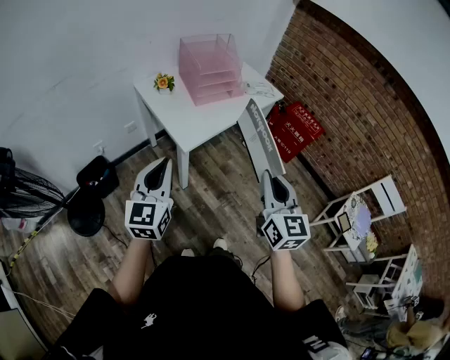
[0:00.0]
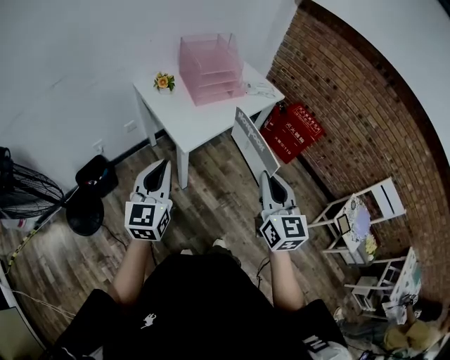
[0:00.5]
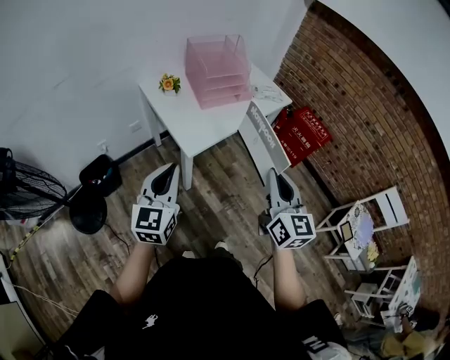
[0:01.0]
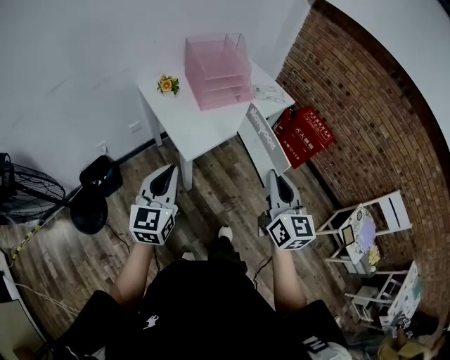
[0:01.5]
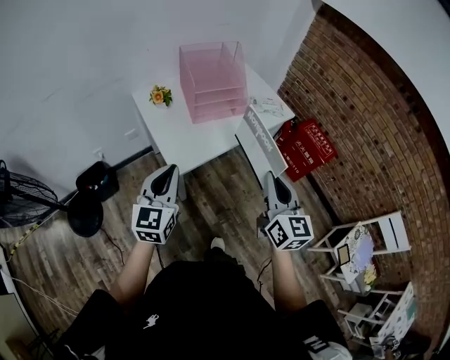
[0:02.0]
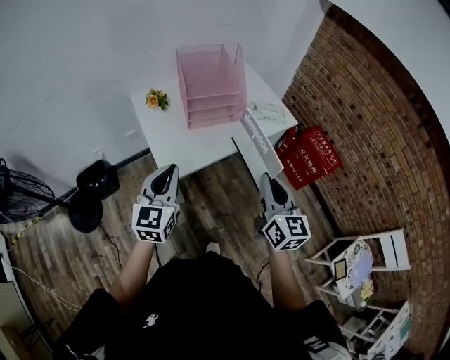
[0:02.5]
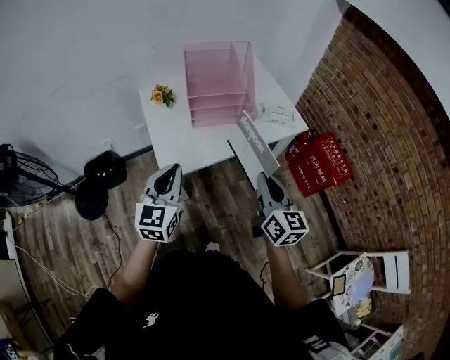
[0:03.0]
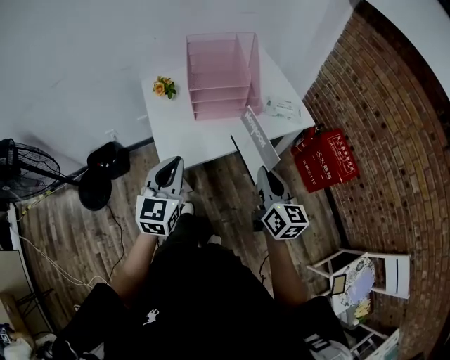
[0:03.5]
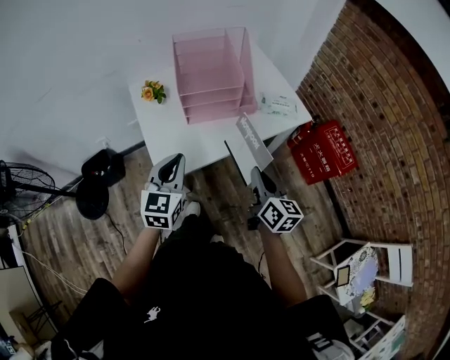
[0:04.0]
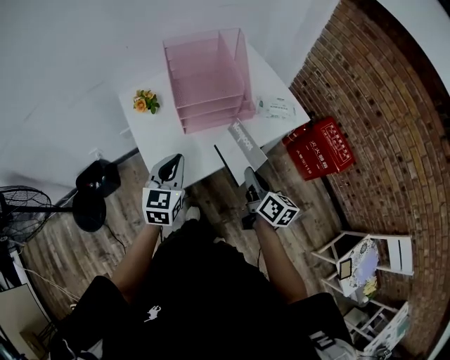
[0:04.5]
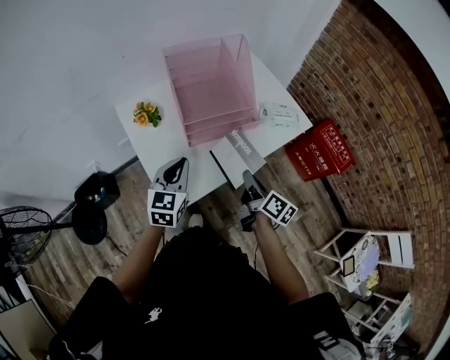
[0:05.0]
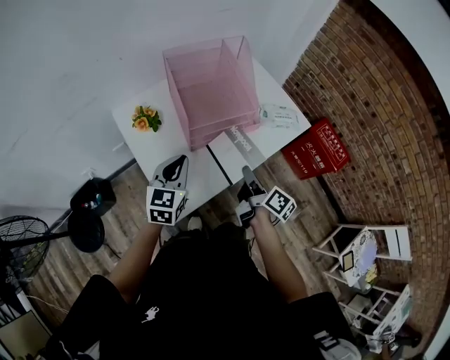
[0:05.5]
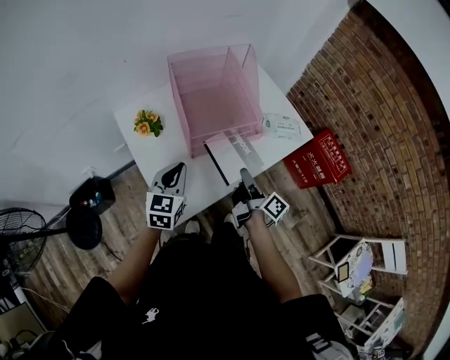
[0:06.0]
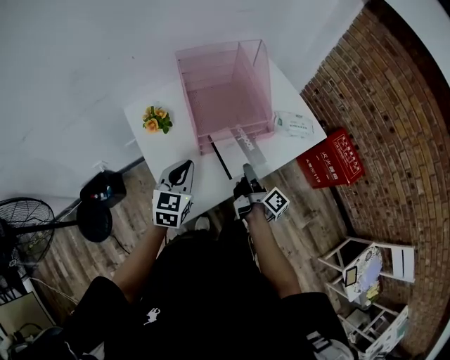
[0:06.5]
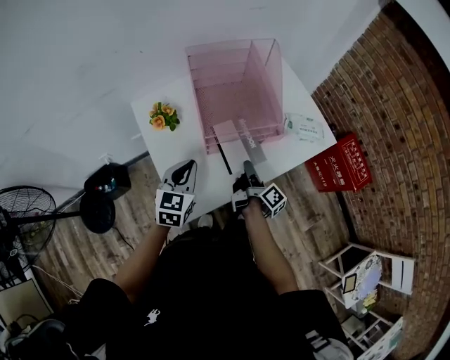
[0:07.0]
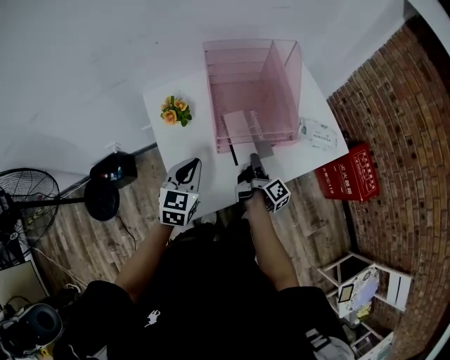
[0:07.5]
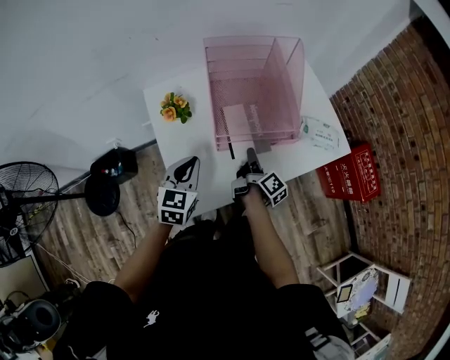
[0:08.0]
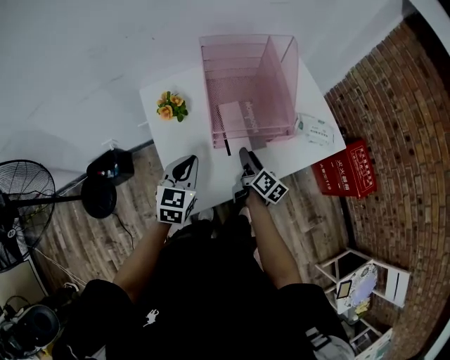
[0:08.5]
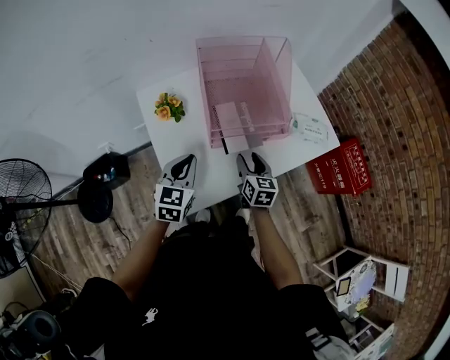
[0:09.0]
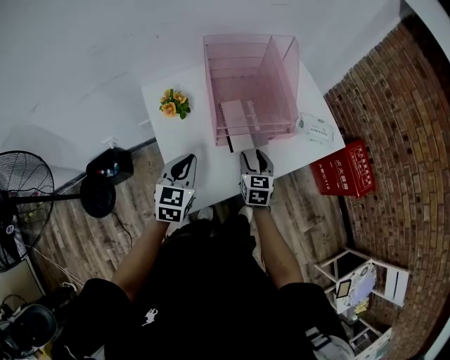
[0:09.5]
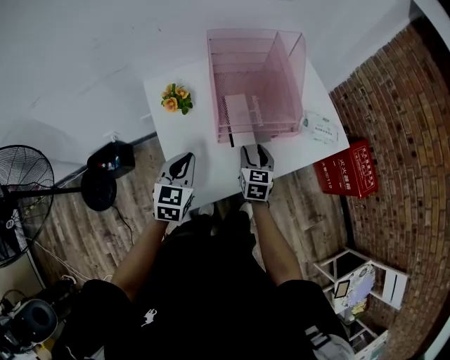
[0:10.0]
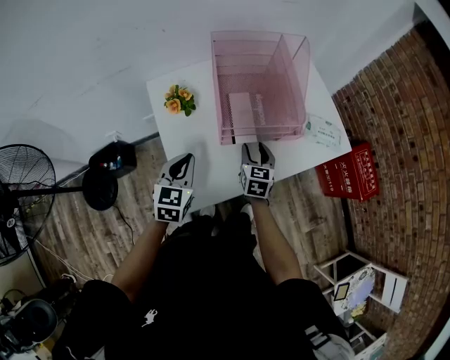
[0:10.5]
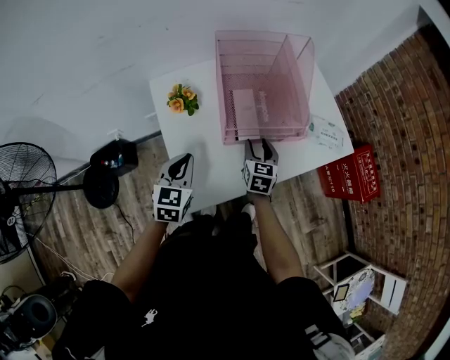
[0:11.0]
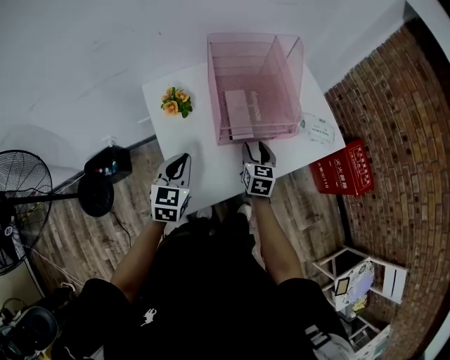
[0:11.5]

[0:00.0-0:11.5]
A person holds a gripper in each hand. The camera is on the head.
0.0 to 2.0 s: The left gripper heads forward and to the right, covering about 15 cm. The right gripper goes roughly 15 cm forward.
2.0 to 4.0 s: The right gripper heads forward, downward and to the right, covering about 20 cm, and rotates roughly 30 degrees. Meanwhile the left gripper goes about 15 cm forward, to the right and downward.
4.0 to 6.0 s: The right gripper shifts approximately 20 cm forward, to the left and downward, and rotates around the line of its fingers by roughly 40 degrees, clockwise from behind. The left gripper travels forward, downward and to the left by some 20 cm.
6.0 to 7.5 s: The right gripper is displaced forward and downward by some 10 cm.
7.5 to 9.5 s: The right gripper twists about 80 degrees counterclockwise, seen from behind, and opens.
9.5 to 11.5 s: The grippers make only small movements.

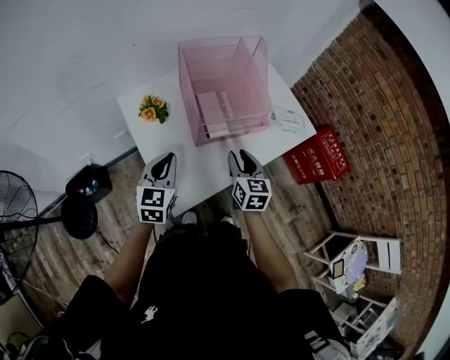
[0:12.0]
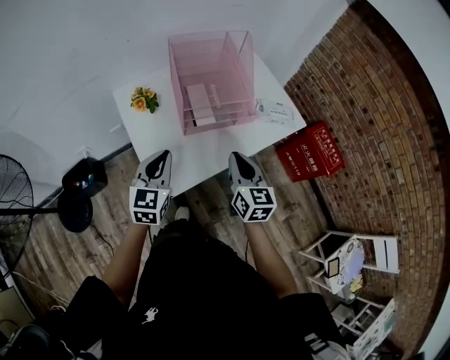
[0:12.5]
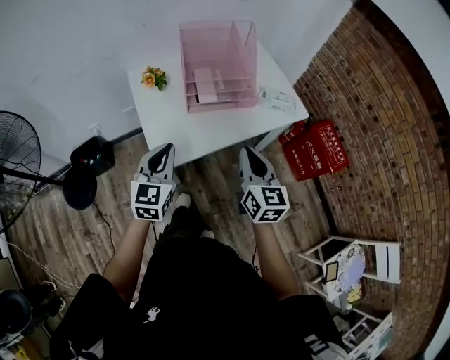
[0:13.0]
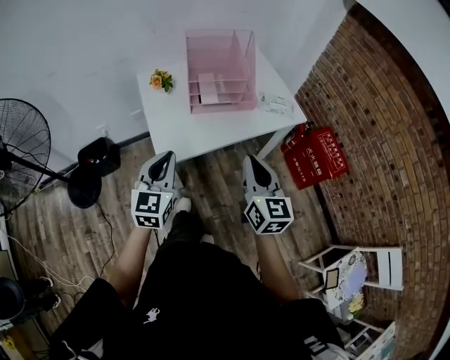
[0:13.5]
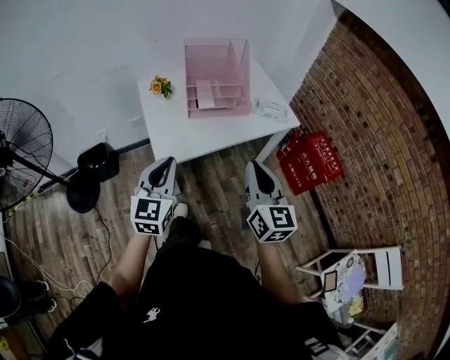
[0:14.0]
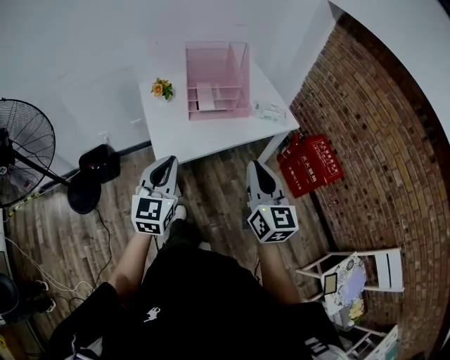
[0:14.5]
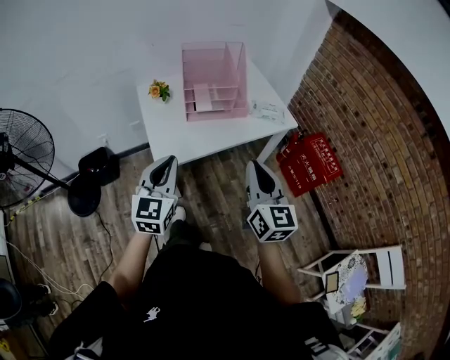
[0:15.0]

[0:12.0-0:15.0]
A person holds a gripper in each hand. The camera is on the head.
12.0 to 13.5 s: The left gripper goes approximately 25 cm backward, while the right gripper goes approximately 30 cm backward and upward, and closes its fingers.
13.5 to 15.0 s: The right gripper ends up roughly 5 cm from where it was; the left gripper shifts by approximately 5 cm.

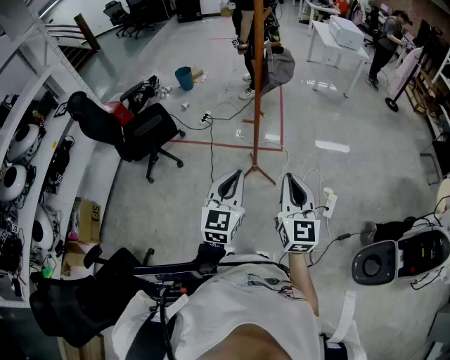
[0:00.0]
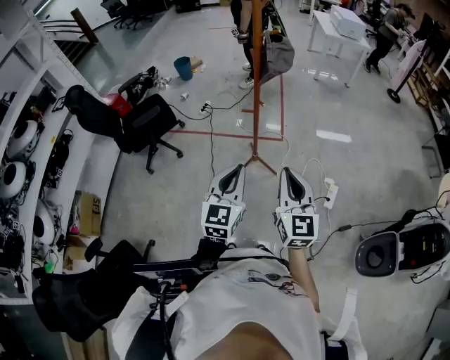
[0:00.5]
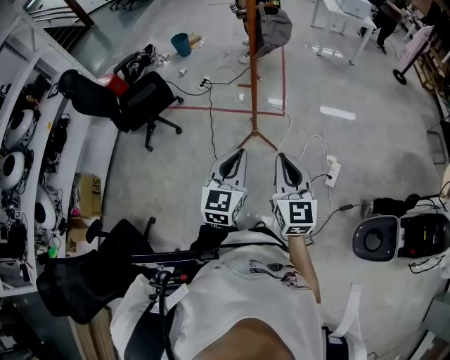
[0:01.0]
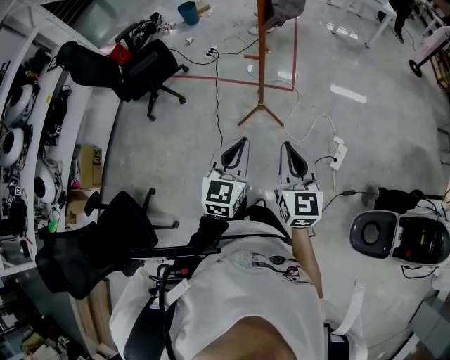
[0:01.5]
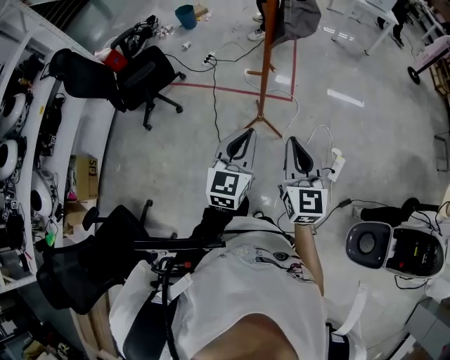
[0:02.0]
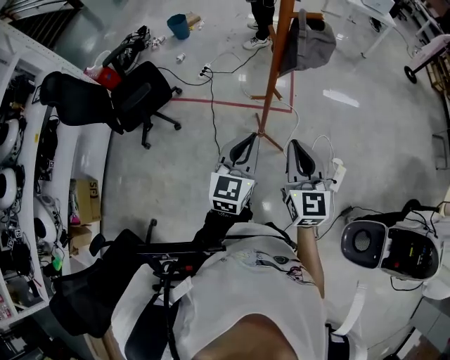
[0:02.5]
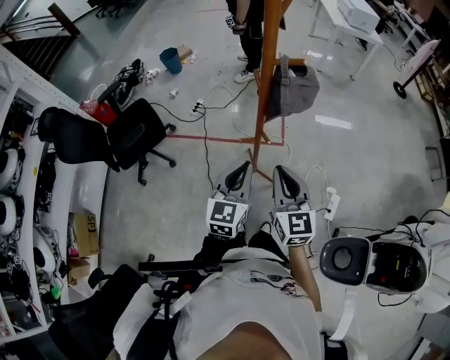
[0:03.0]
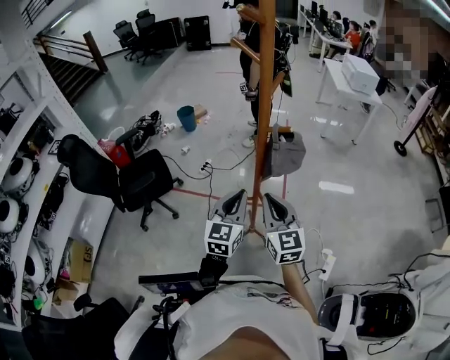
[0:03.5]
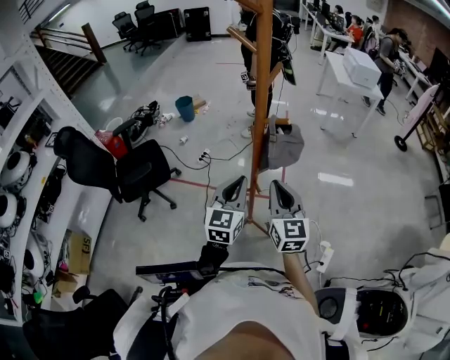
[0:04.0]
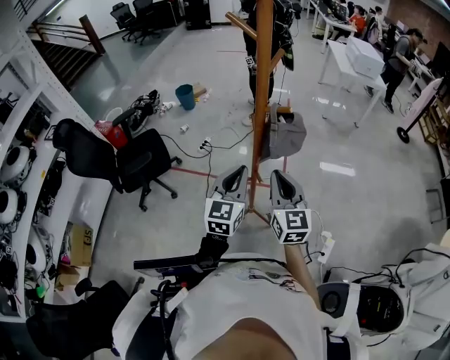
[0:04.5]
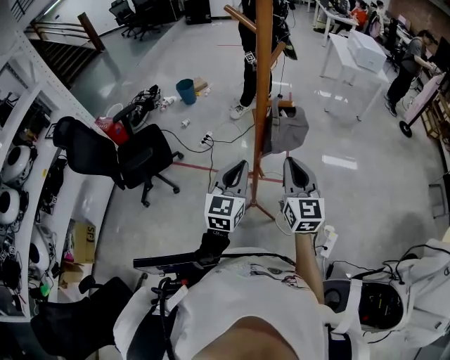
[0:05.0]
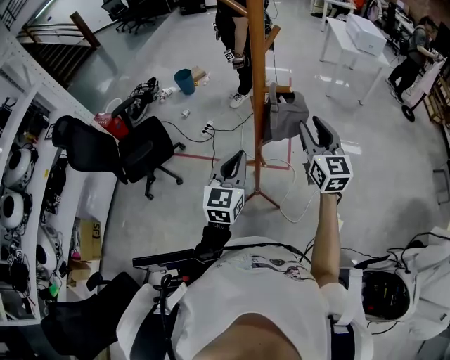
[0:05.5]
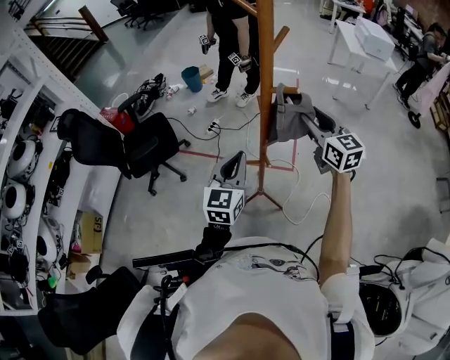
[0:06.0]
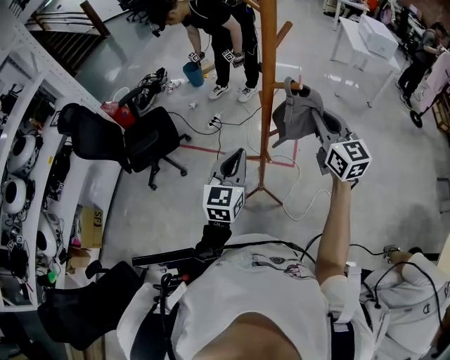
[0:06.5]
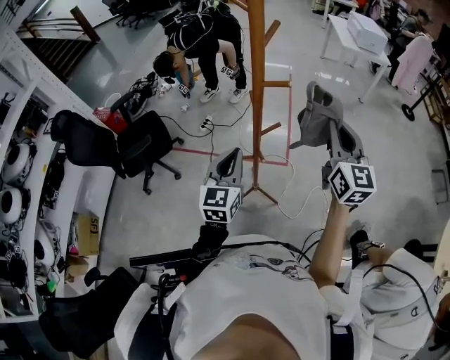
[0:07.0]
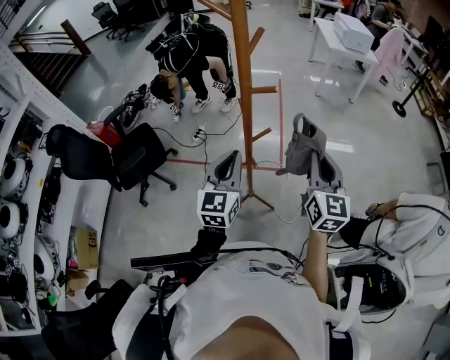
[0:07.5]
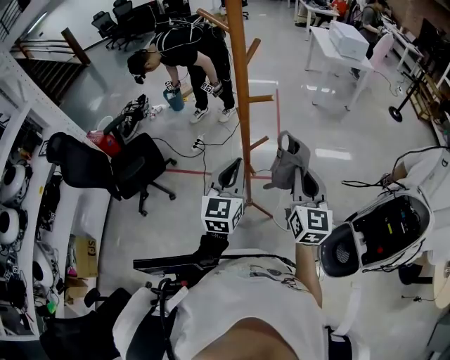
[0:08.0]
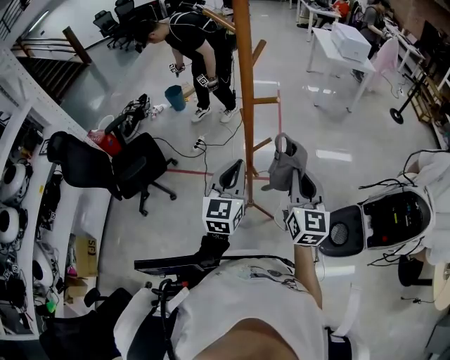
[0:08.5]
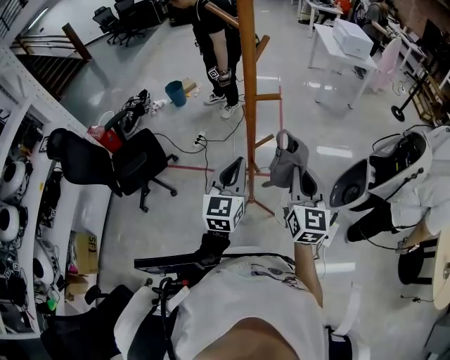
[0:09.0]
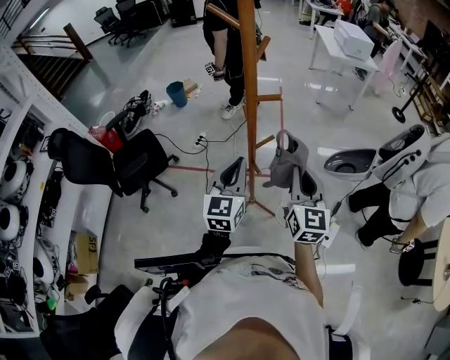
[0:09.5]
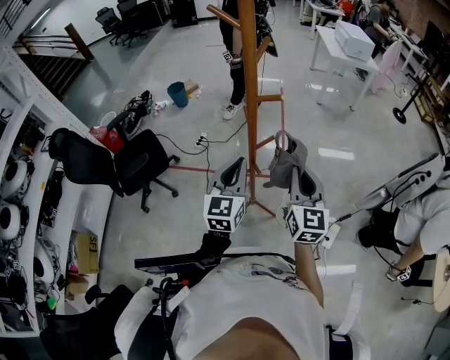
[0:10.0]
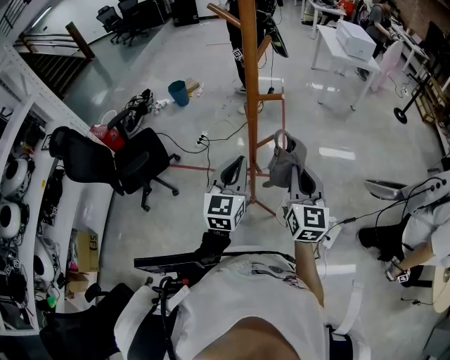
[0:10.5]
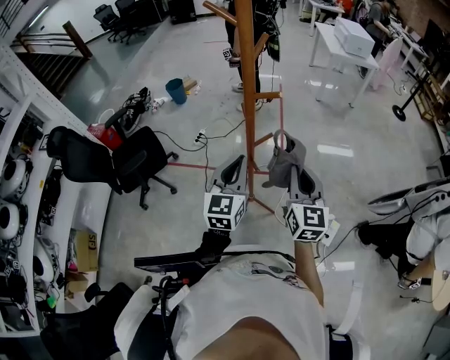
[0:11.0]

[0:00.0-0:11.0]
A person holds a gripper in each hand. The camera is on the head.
0.0 to 2.0 s: The grippers both shift forward by approximately 10 cm.
2.0 to 3.5 s: Both grippers move forward, some 20 cm.
3.5 to 5.5 s: The right gripper is displaced to the right and forward by approximately 15 cm, and opens up.
5.5 to 7.5 s: The right gripper moves backward, roughly 10 cm, and closes its fingers.
7.5 to 9.0 s: The right gripper shifts by about 5 cm.
9.0 to 11.0 s: The grippers stay close to where they were, moving slightly.

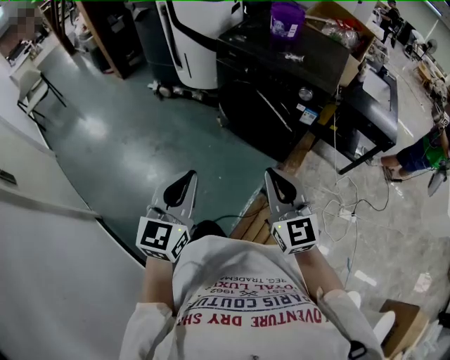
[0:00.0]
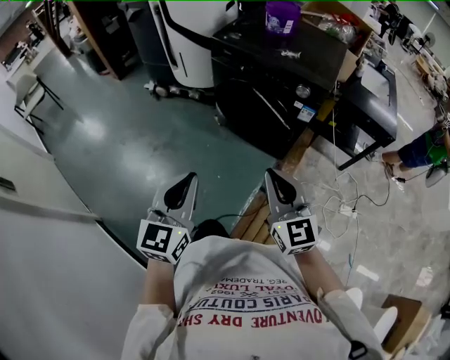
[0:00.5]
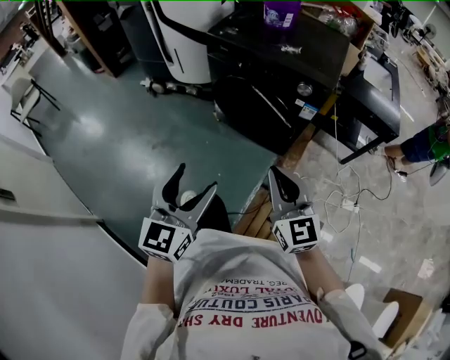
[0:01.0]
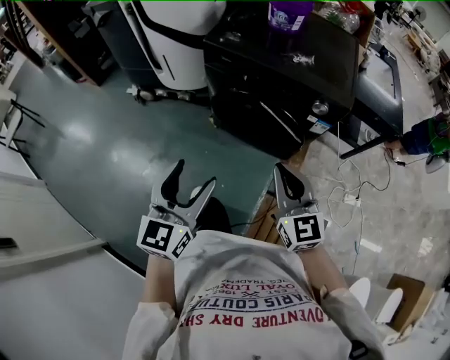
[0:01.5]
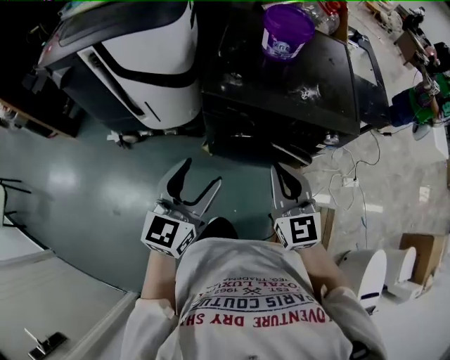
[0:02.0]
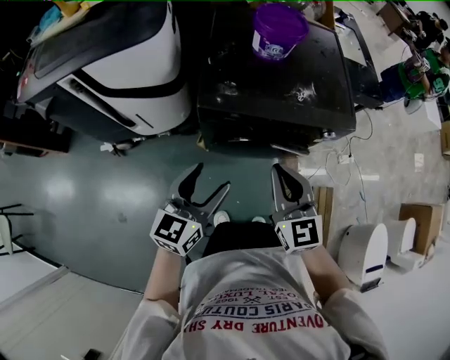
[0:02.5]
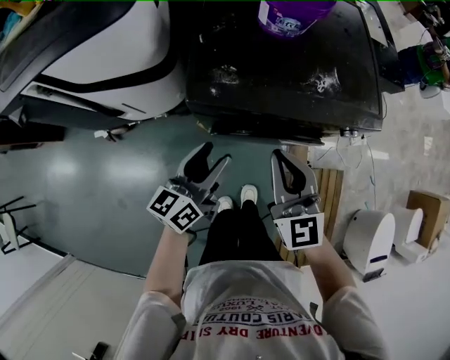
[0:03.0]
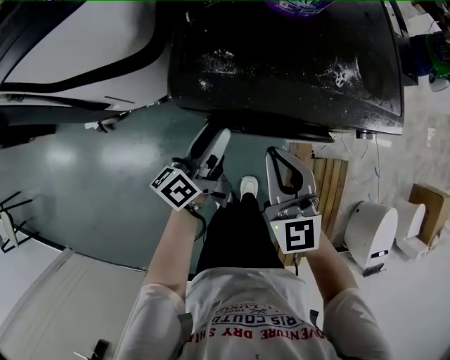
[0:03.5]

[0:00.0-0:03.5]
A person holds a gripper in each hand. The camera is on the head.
0.0 to 2.0 s: The pair of grippers is taken about 40 cm. The right gripper swivels roughly 30 degrees; the left gripper turns by roughly 30 degrees, and opens its fingers.
2.0 to 3.5 s: The left gripper is displaced forward and downward by some 30 cm, and rolls counterclockwise, seen from behind, by some 60 degrees. Meanwhile the right gripper is displaced forward and downward by approximately 15 cm.
